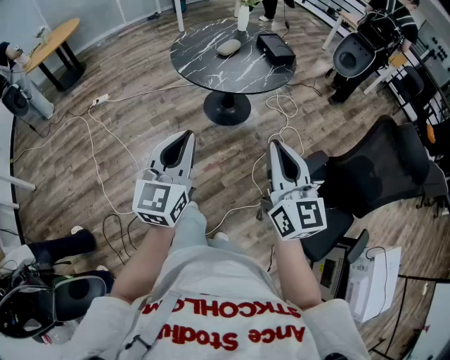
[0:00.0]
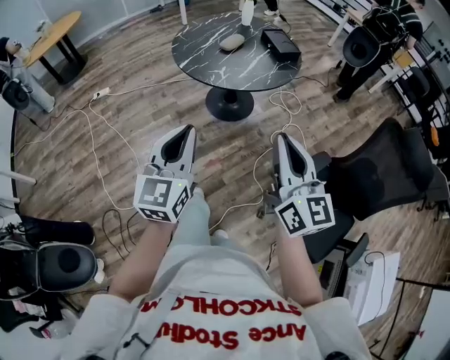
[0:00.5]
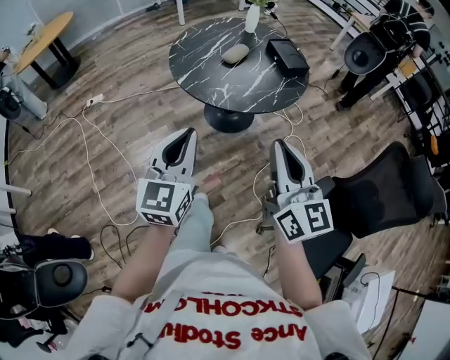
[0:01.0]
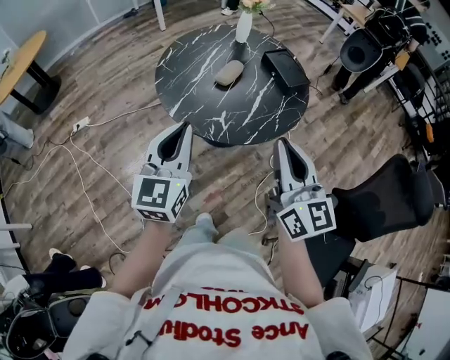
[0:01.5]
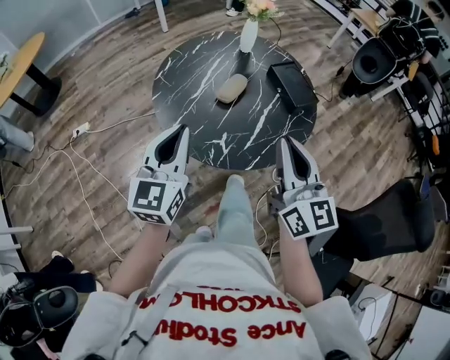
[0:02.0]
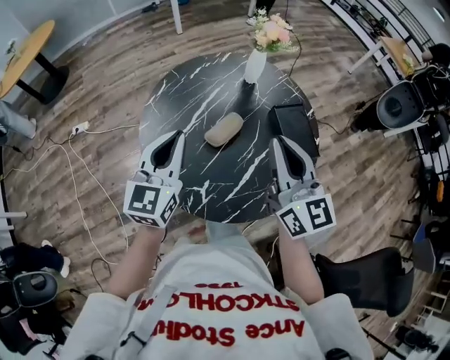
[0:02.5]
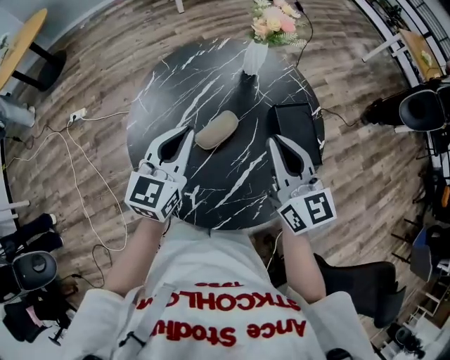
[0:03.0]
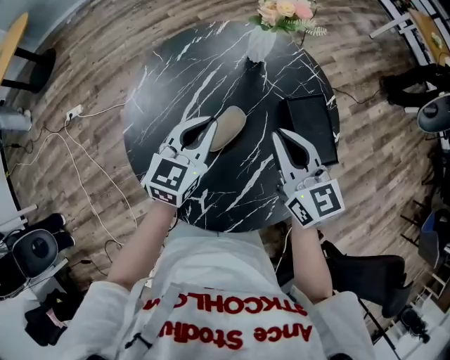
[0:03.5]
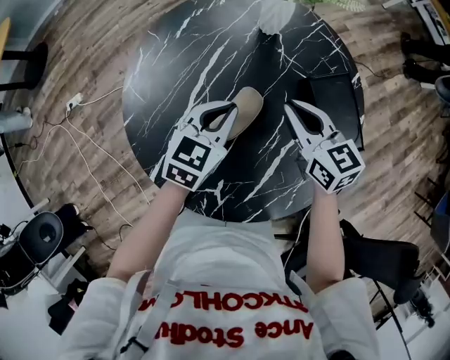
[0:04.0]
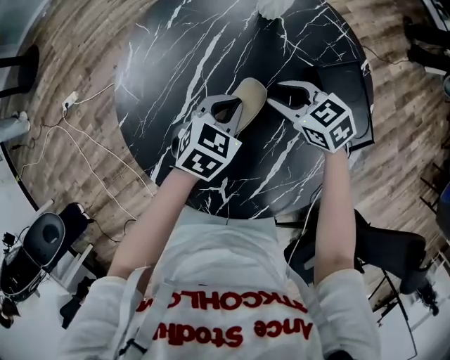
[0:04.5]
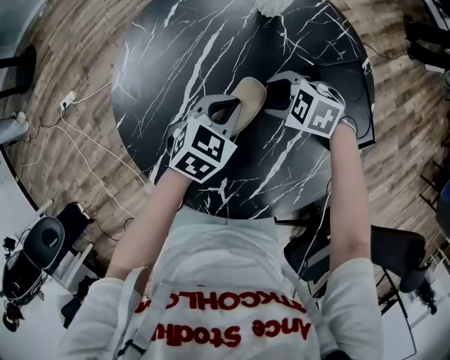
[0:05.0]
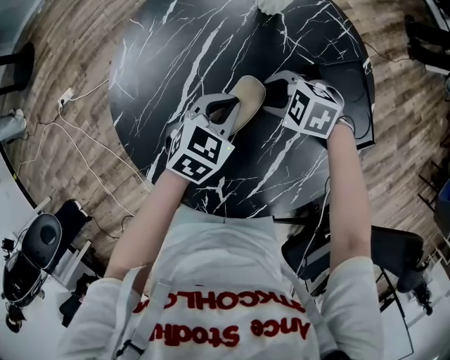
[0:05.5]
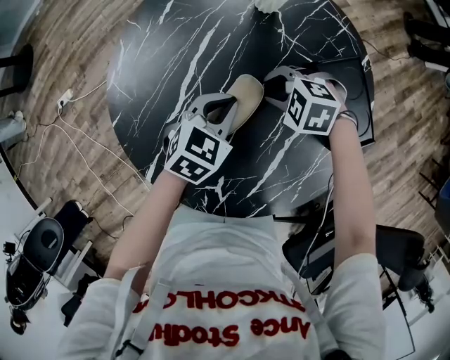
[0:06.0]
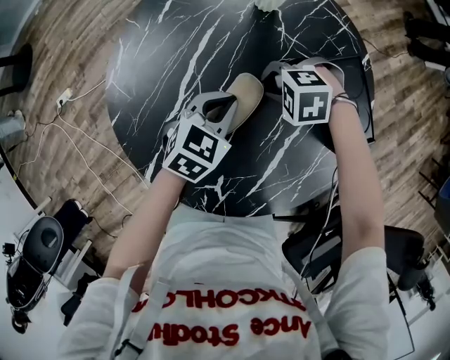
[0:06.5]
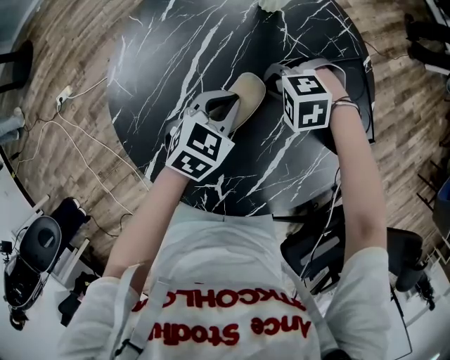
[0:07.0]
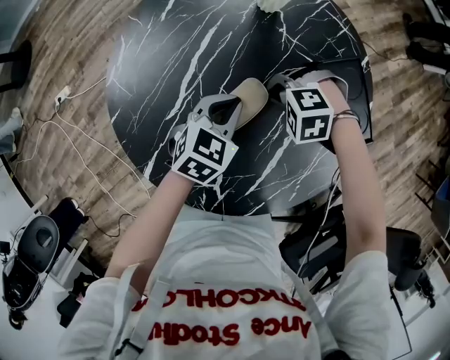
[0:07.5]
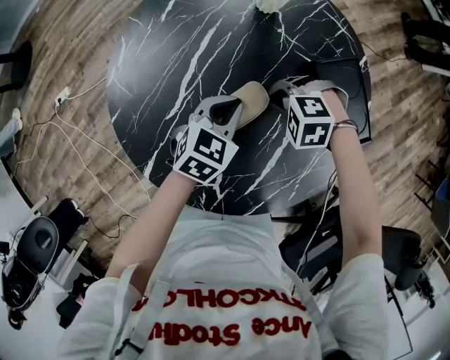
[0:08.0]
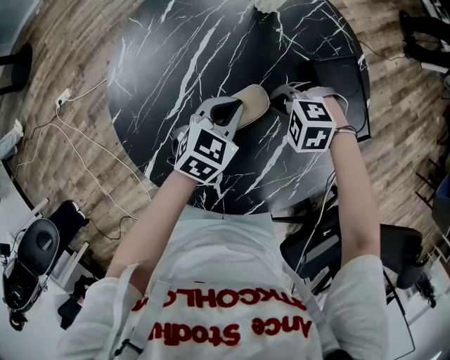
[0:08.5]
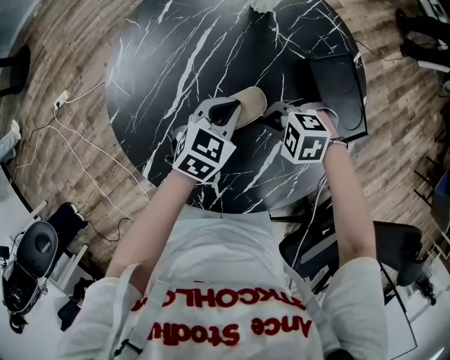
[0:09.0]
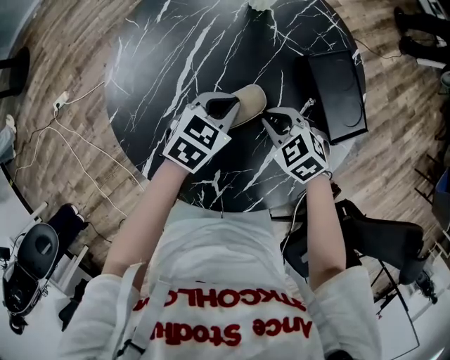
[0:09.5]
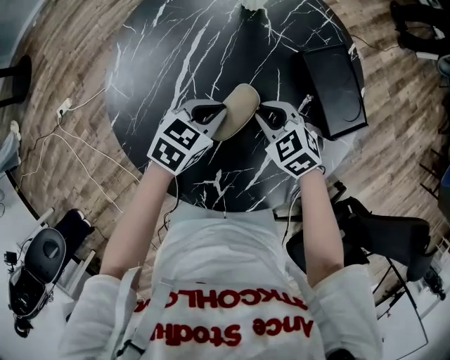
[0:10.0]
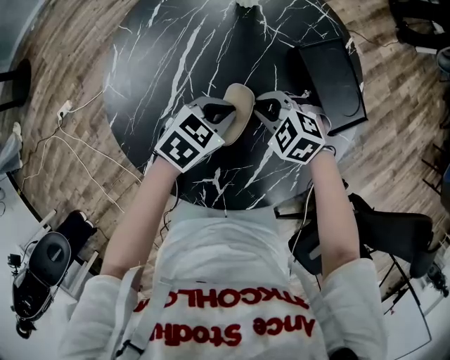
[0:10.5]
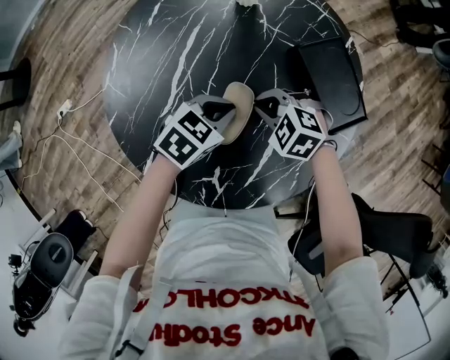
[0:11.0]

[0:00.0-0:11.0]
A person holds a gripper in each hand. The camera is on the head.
0:00.0 to 0:02.0: The pair of grippers is taken forward, about 50 cm.
0:02.0 to 0:03.5: The right gripper heads forward, covering about 35 cm, and changes its angle by some 30 degrees, while the left gripper shifts about 40 cm forward, to the right and downward.
0:03.5 to 0:05.5: The right gripper is displaced downward by approximately 25 cm, tips its fingers downward by about 50 degrees, and opens up. The left gripper travels downward by about 15 cm, and turns by about 30 degrees.
0:05.5 to 0:07.5: The right gripper rotates some 30 degrees, and closes.
0:07.5 to 0:09.0: The right gripper ends up approximately 10 cm from where it was.
0:09.0 to 0:11.0: The right gripper changes its angle by some 20 degrees.

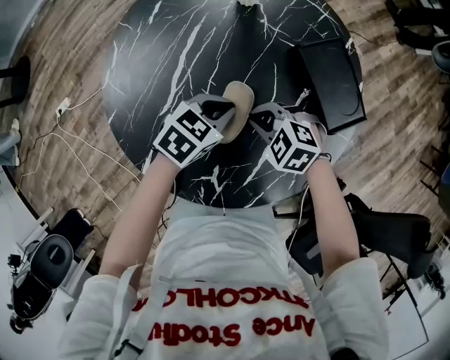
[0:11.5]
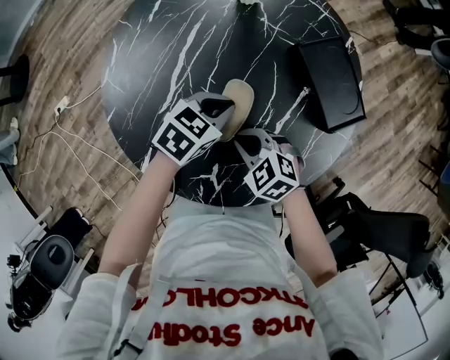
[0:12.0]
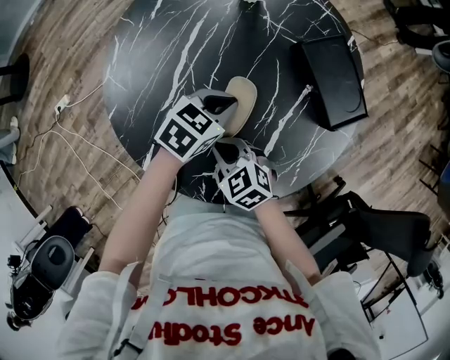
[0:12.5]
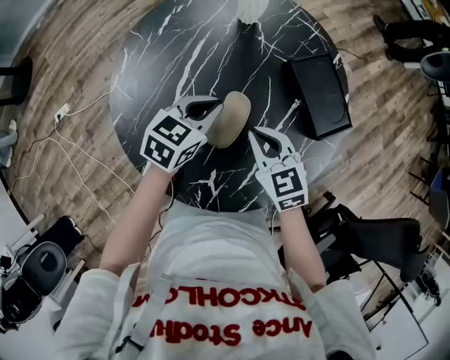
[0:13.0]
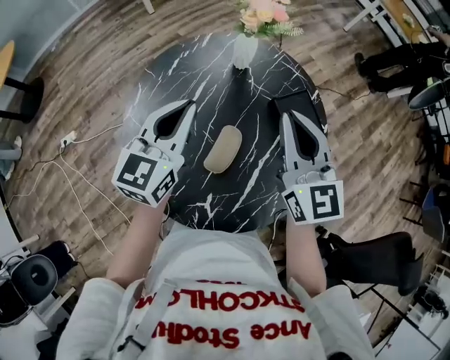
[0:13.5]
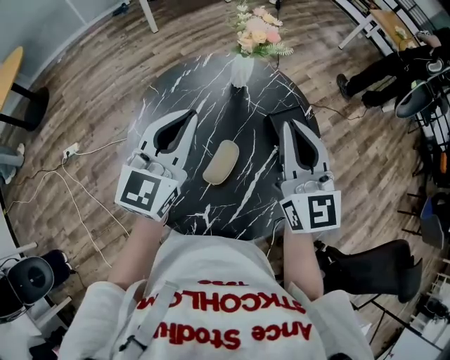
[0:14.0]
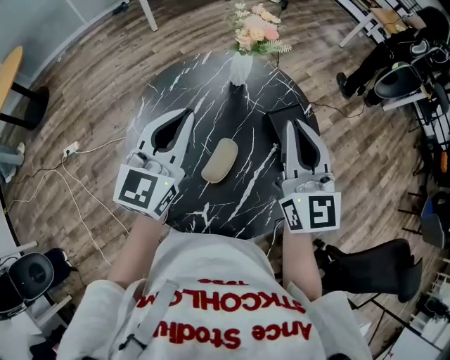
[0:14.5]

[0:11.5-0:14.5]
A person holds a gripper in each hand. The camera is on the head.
0:11.5 to 0:13.0: The right gripper travels upward by some 10 cm, and rotates approximately 50 degrees; the left gripper is displaced upward by roughly 5 cm.
0:13.0 to 0:14.5: Both grippers move upward, some 30 cm. The right gripper angles its fingers upward, by about 40 degrees. Meanwhile the left gripper tips its fingers upward by approximately 30 degrees.

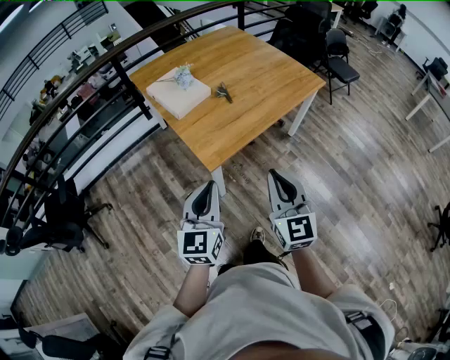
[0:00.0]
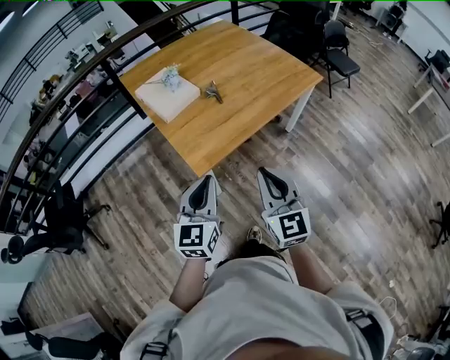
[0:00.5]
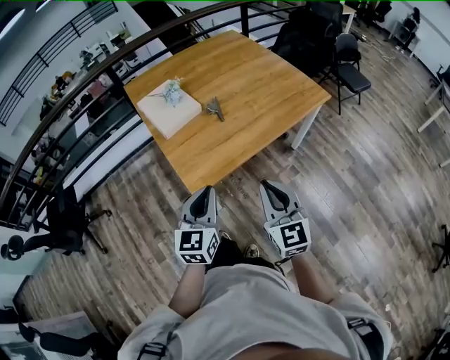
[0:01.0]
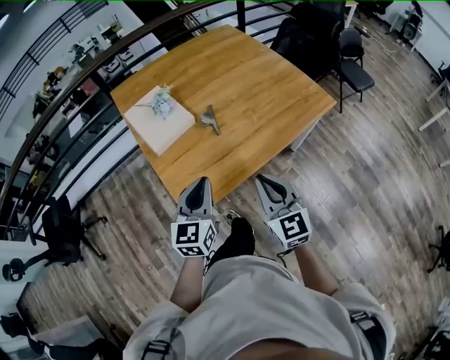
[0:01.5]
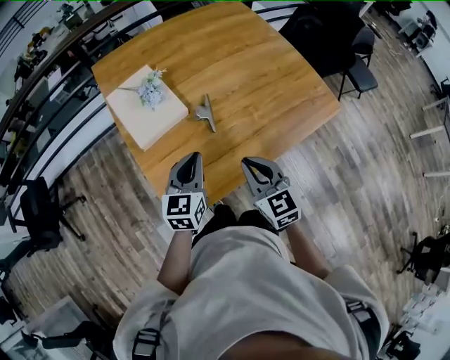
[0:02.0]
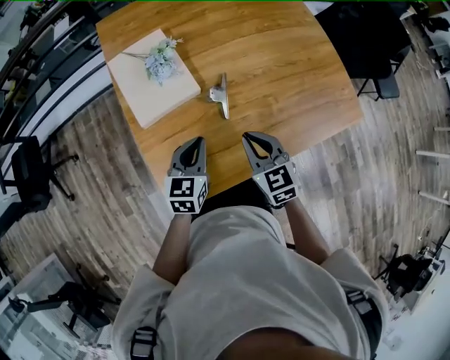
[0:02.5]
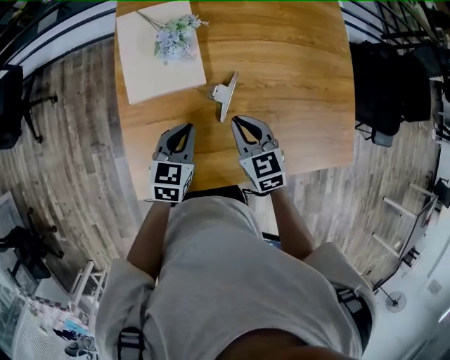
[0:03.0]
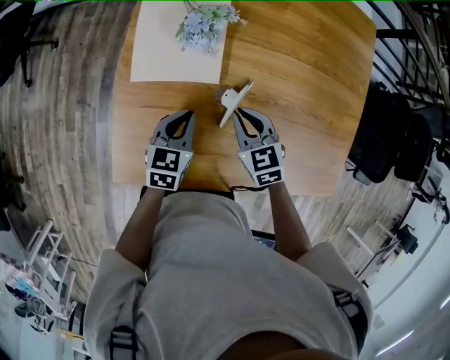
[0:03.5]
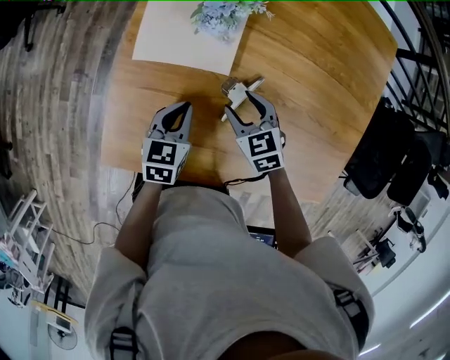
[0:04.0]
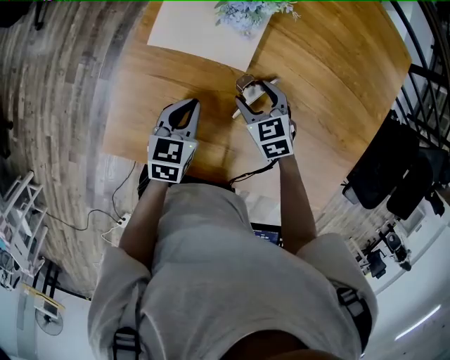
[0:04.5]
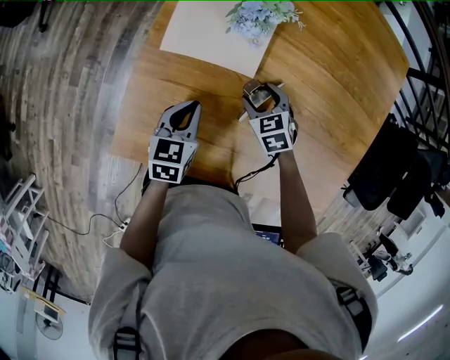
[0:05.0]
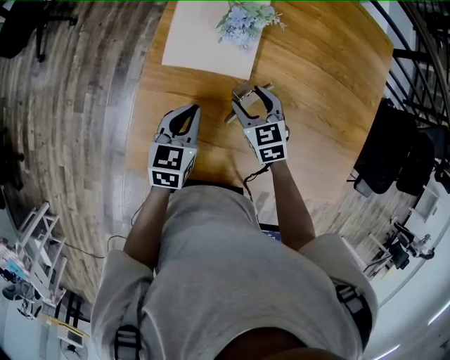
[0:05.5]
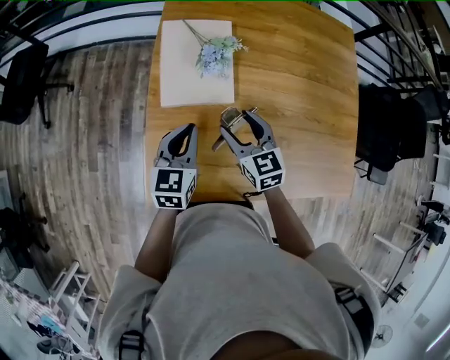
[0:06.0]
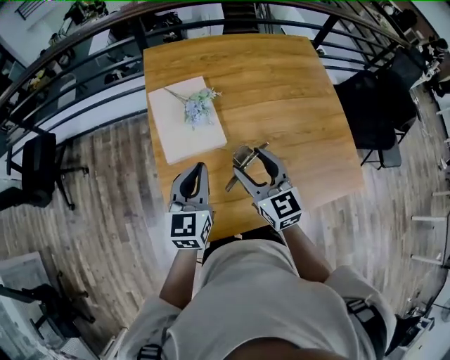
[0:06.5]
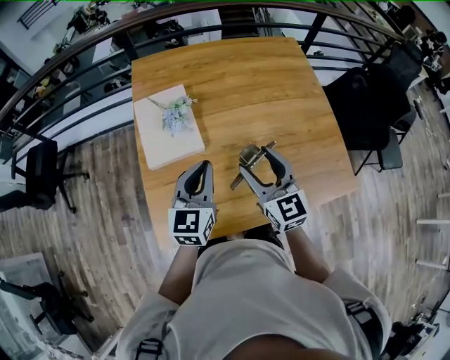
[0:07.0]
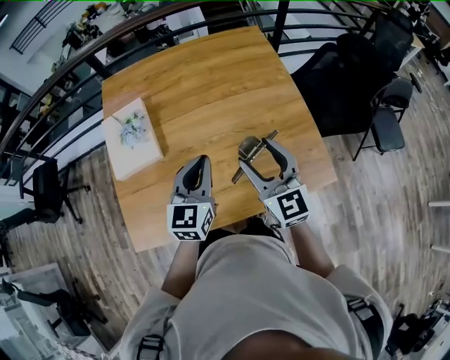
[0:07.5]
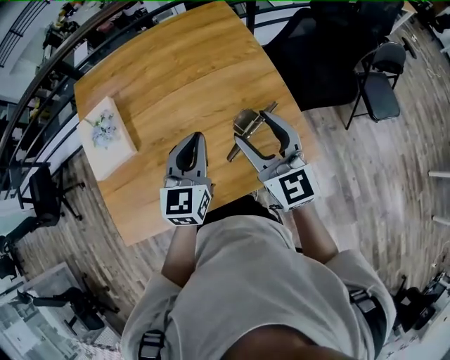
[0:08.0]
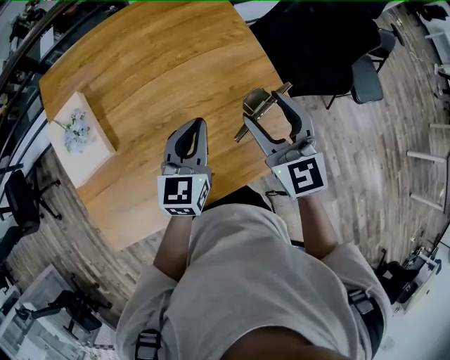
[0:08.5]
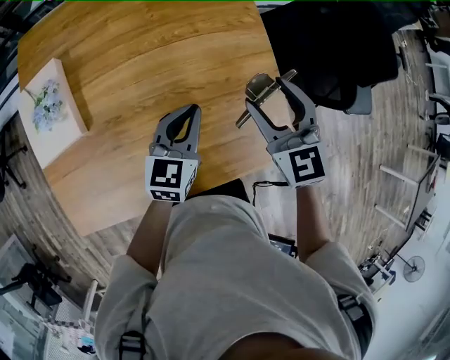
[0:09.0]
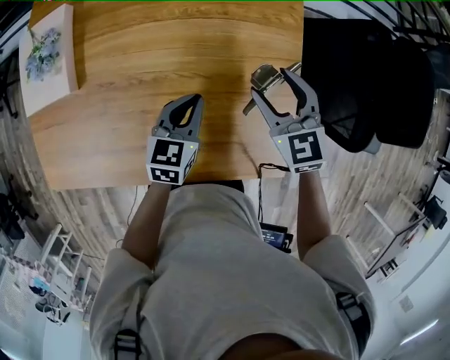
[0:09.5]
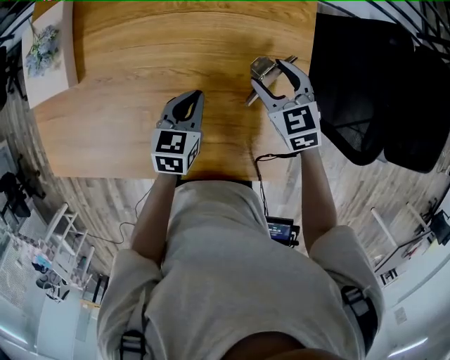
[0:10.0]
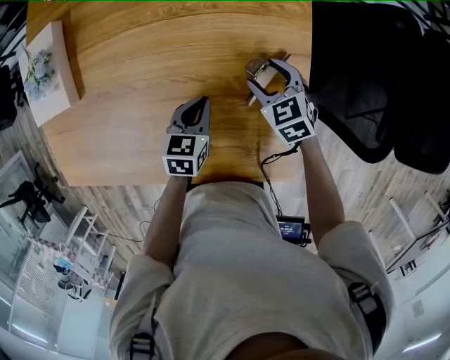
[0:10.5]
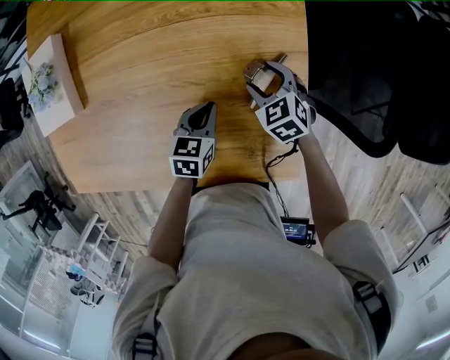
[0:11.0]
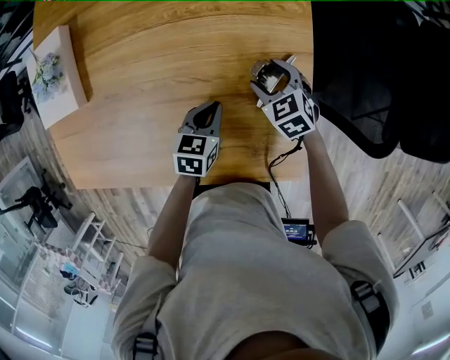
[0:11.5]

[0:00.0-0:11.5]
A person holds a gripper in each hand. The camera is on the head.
0:00.0 to 0:02.0: The two grippers go about 40 cm forward. The right gripper swivels approximately 30 degrees.
0:02.0 to 0:04.0: The right gripper moves approximately 30 cm, turns by approximately 50 degrees, and opens up. The left gripper travels downward by approximately 20 cm, and changes its angle by approximately 40 degrees.
0:04.0 to 0:06.0: The grippers both shift upward and to the left by about 15 cm. The right gripper swivels some 30 degrees.
0:06.0 to 0:07.5: The right gripper heads to the right and upward, covering approximately 40 cm, and changes its angle by about 30 degrees. The left gripper heads to the right, covering approximately 35 cm, and rotates approximately 20 degrees.
0:07.5 to 0:09.5: The right gripper moves forward, downward and to the right, approximately 30 cm, and swivels some 30 degrees. The left gripper shifts about 30 cm downward, to the right and forward, and rotates roughly 30 degrees.
0:09.5 to 0:11.5: The right gripper shifts approximately 15 cm downward, while the left gripper heads downward, covering roughly 10 cm.

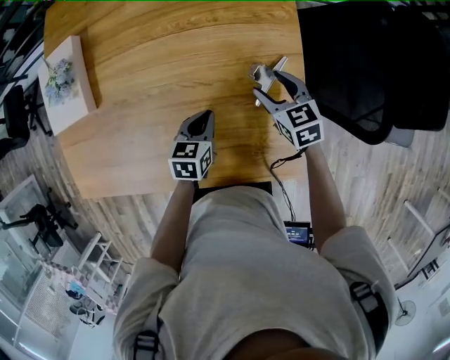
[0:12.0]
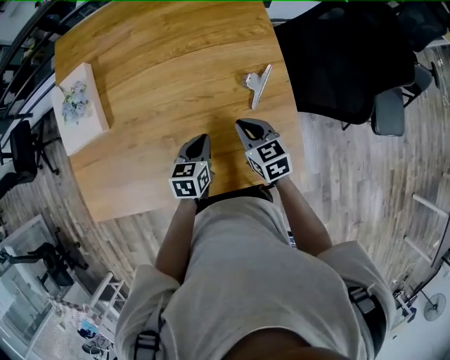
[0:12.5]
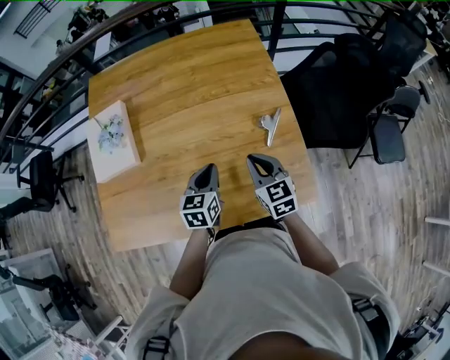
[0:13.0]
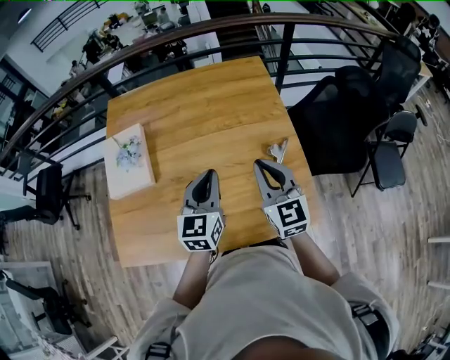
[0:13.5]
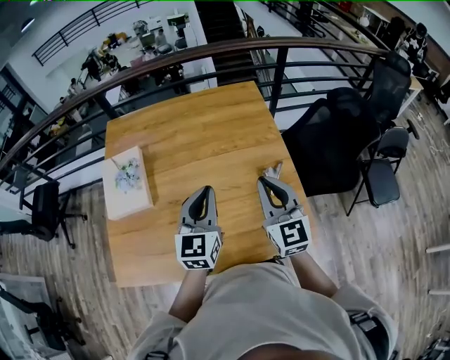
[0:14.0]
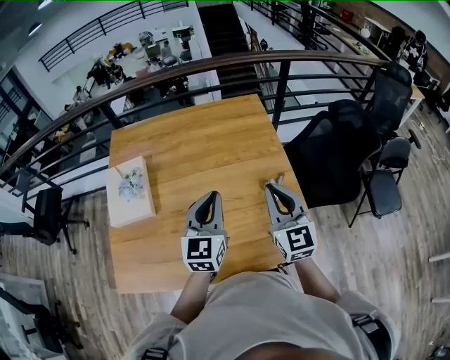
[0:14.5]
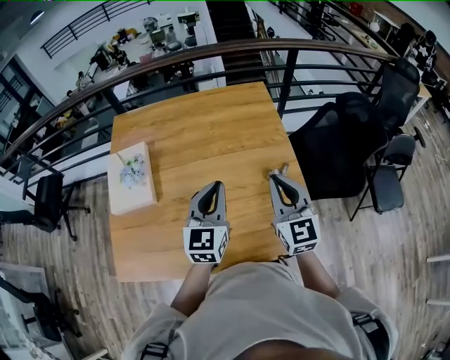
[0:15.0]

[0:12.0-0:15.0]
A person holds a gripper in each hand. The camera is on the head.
0:12.0 to 0:13.5: The left gripper heads upward, covering some 30 cm, and tips its fingers upward by approximately 30 degrees, while the right gripper heads upward, to the left and backward, covering approximately 35 cm, tilts its fingers about 30 degrees upward, and closes its fingers.
0:13.5 to 0:15.0: The grippers make only small movements.
